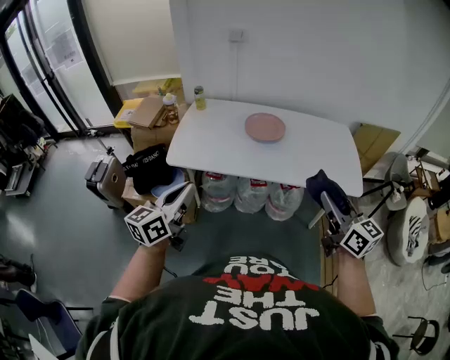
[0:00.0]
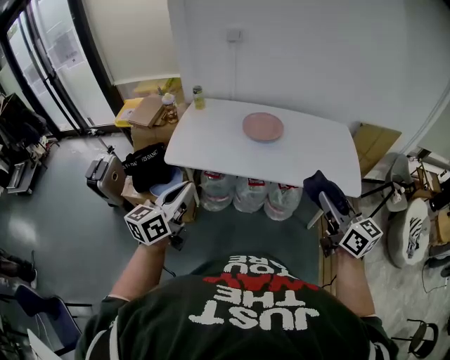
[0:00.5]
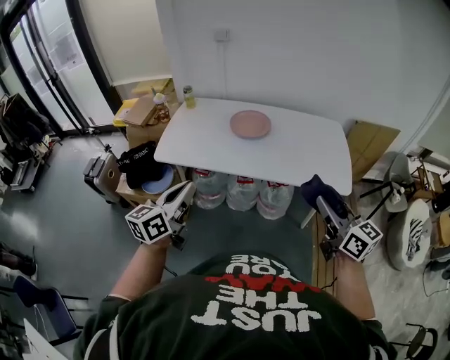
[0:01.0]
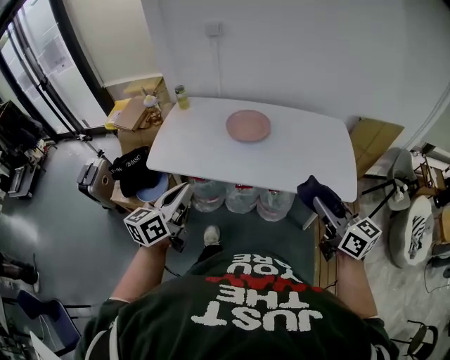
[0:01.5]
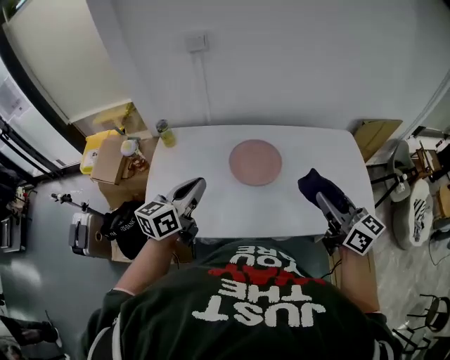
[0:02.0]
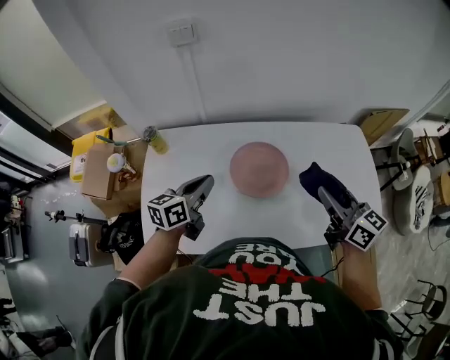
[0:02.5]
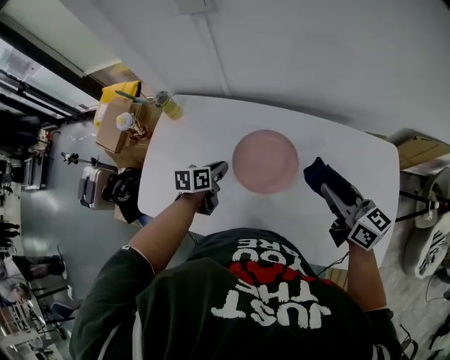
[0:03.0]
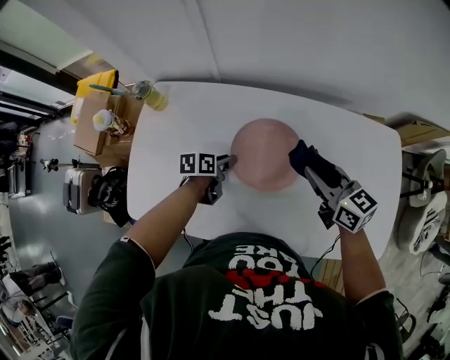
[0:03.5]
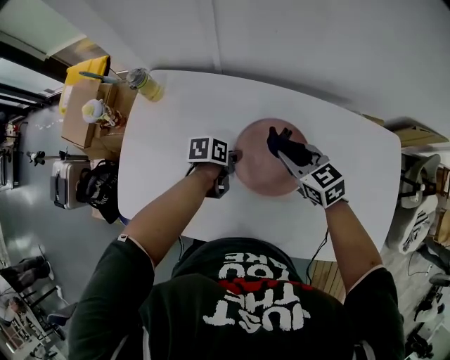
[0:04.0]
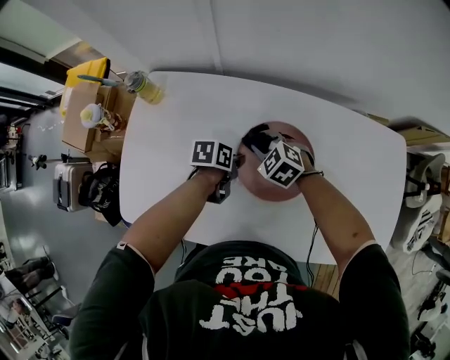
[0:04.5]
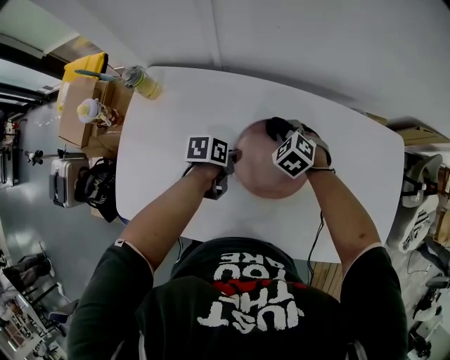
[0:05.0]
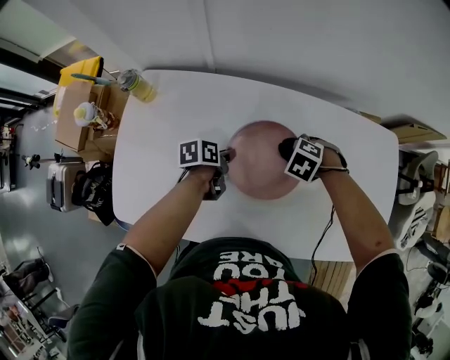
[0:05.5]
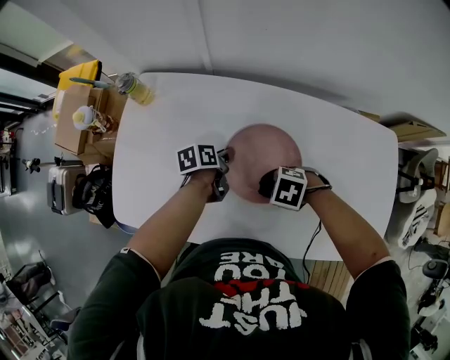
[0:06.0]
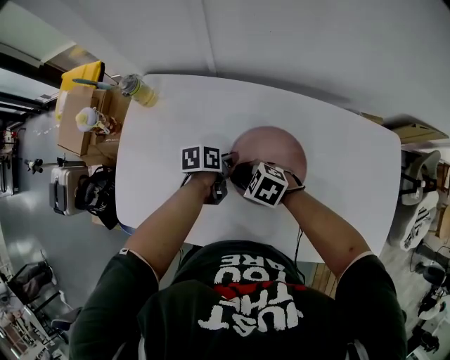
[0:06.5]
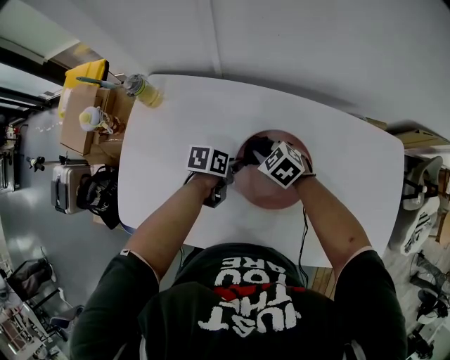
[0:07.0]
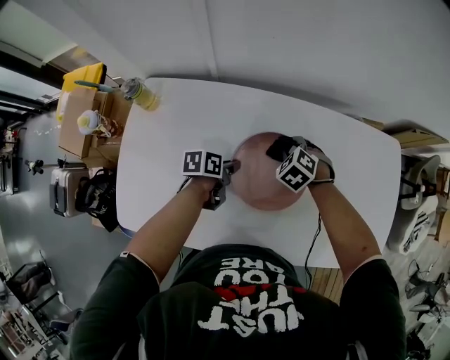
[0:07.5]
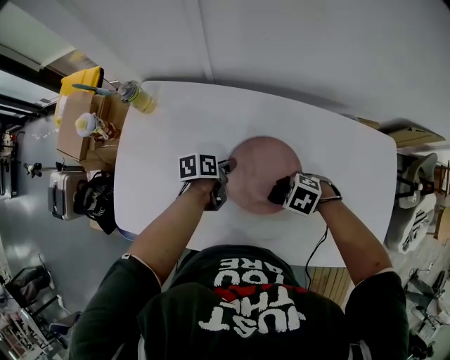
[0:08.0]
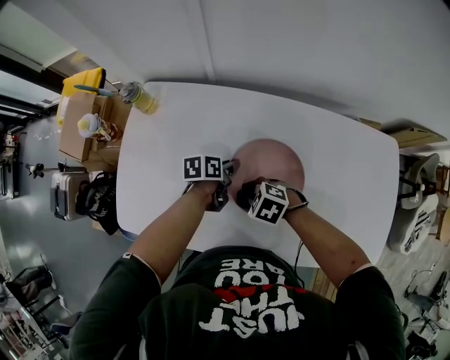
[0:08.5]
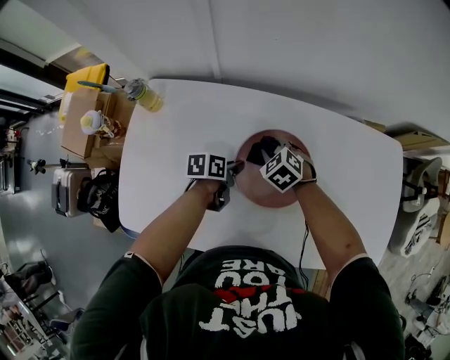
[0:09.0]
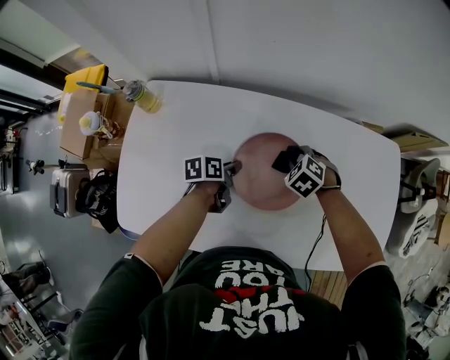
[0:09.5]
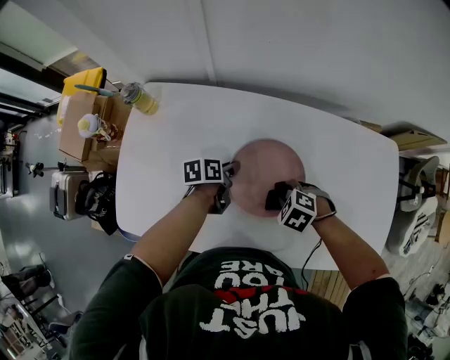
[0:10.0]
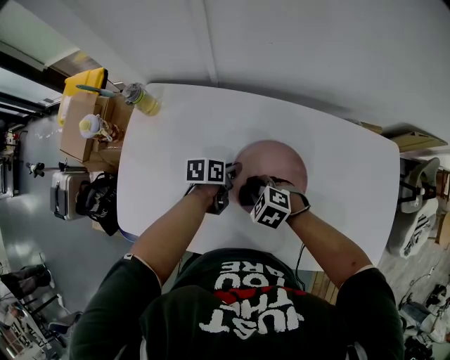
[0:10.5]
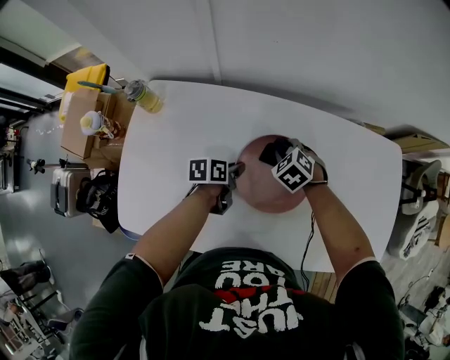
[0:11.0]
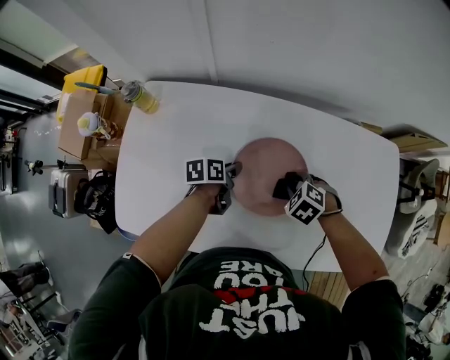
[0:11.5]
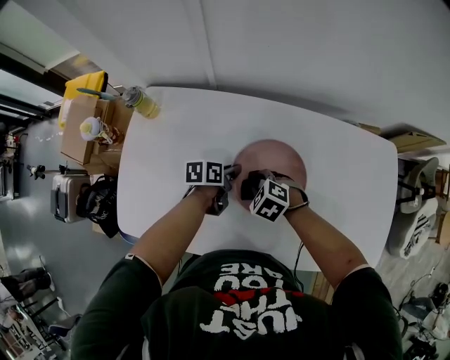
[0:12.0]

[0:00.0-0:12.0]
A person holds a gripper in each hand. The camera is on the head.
0:00.0 to 0:02.0: Both grippers travel together forward, some 35 cm.
0:02.0 to 0:04.0: The right gripper travels forward and downward by about 40 cm, and angles its fingers downward, by about 30 degrees; the left gripper moves downward and forward, approximately 40 cm, and points its fingers approximately 40 degrees further downward.
0:04.0 to 0:06.0: The right gripper moves approximately 15 cm, and points its fingers roughly 40 degrees further downward.

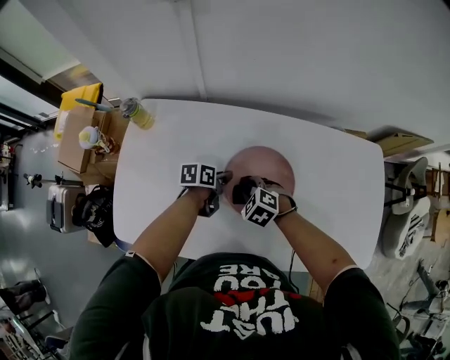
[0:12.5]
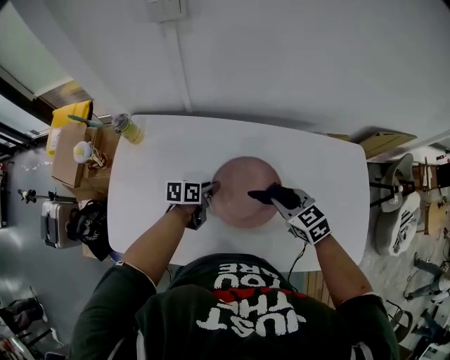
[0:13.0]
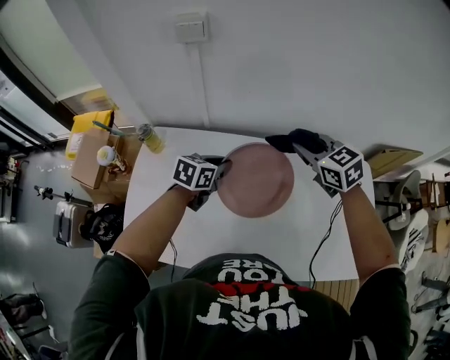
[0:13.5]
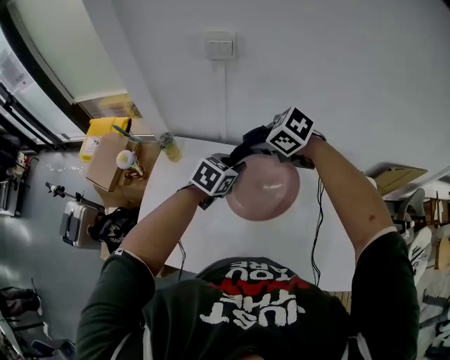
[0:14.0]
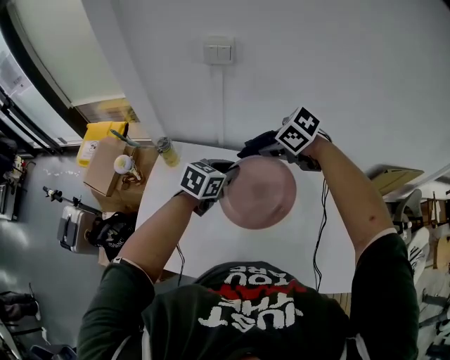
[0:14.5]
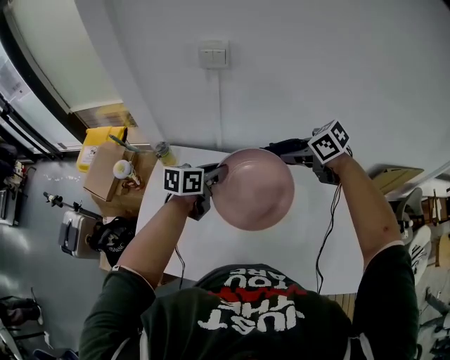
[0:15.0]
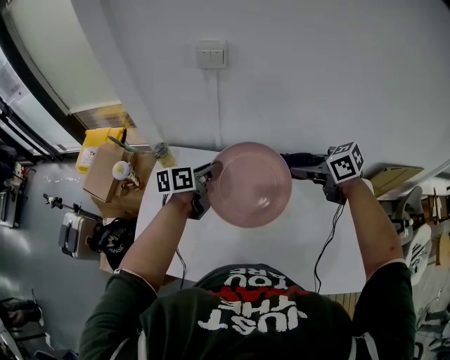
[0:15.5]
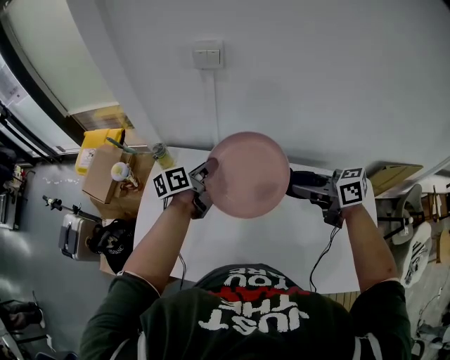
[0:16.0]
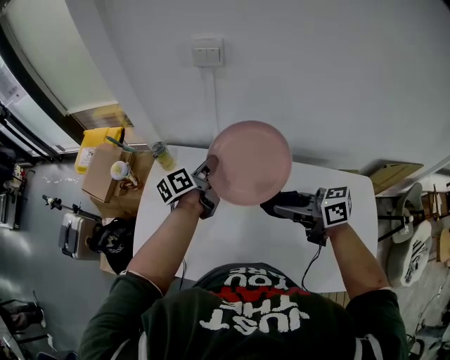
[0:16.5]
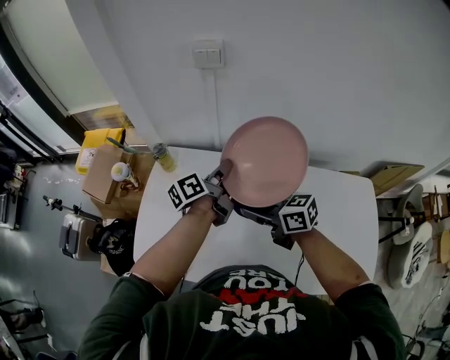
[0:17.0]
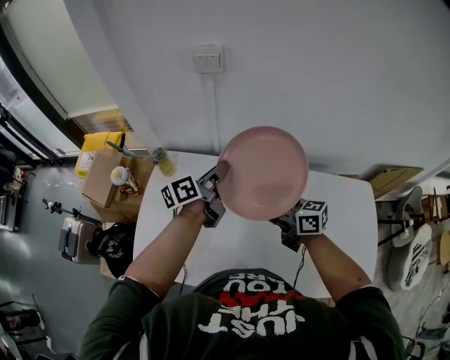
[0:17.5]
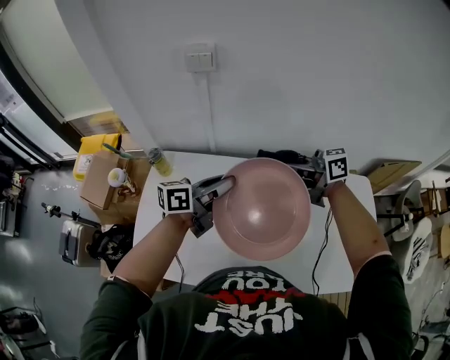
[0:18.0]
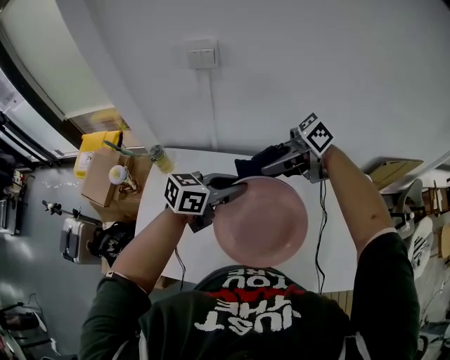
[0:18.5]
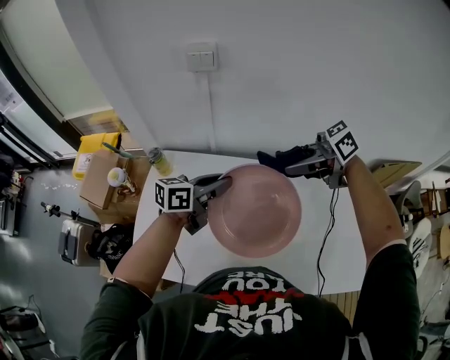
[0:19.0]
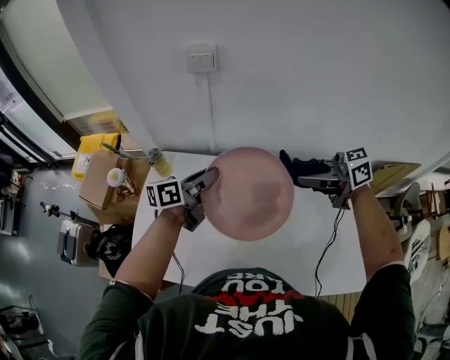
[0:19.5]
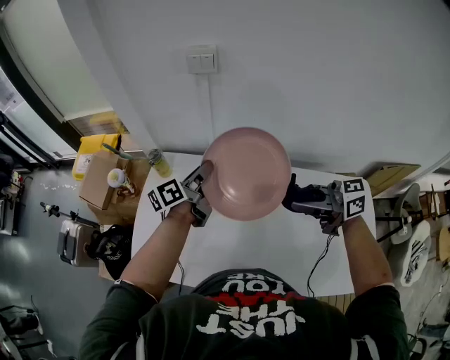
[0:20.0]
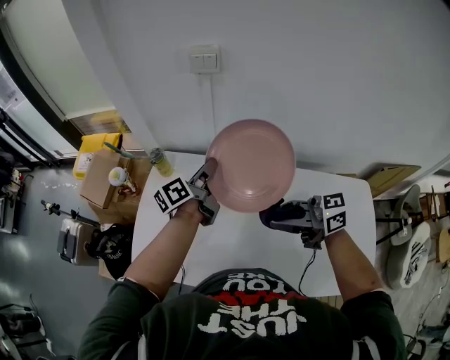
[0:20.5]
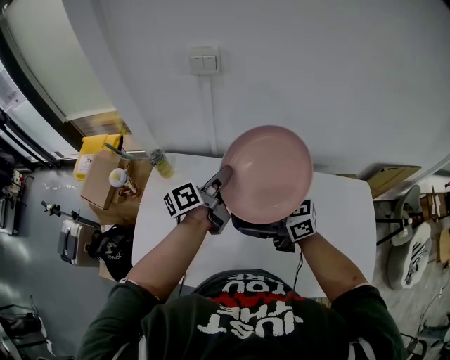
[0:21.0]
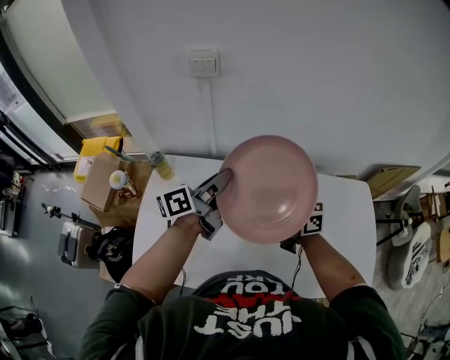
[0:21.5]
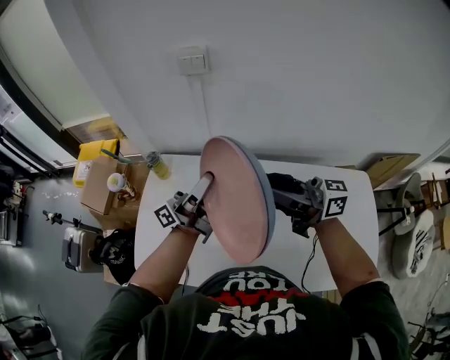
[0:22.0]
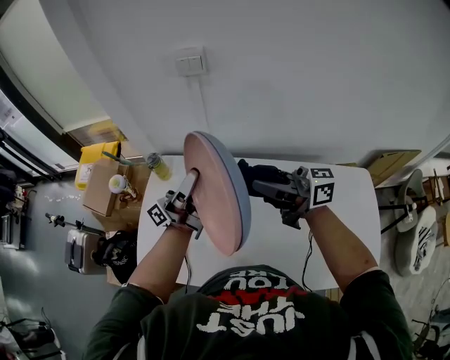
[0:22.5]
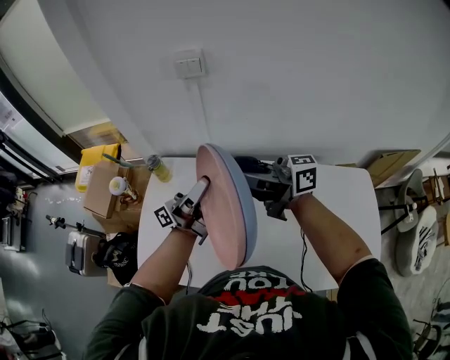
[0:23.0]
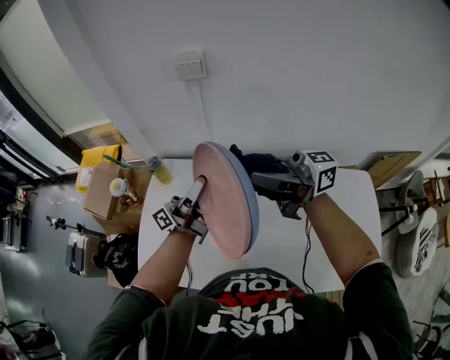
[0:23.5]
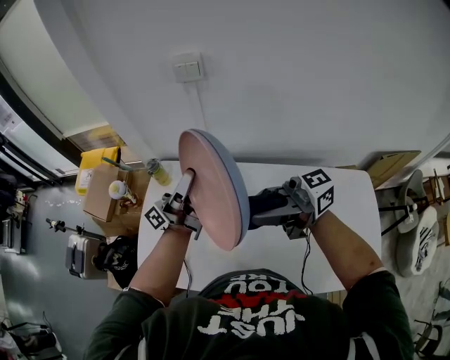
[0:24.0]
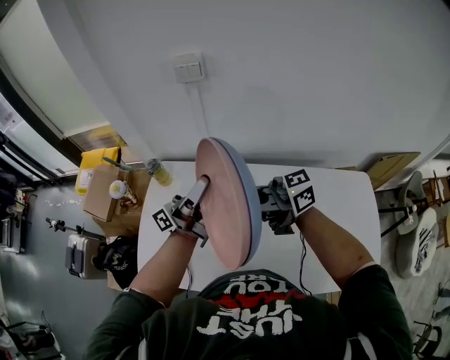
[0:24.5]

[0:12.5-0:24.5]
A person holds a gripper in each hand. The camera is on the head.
0:12.5 to 0:14.5: Both grippers travel together upward, about 25 cm. The left gripper rolls clockwise, seen from behind, by roughly 50 degrees, while the right gripper swivels approximately 30 degrees.
0:14.5 to 0:16.5: The right gripper changes place by some 15 cm, and points its fingers some 40 degrees further upward; the left gripper moves roughly 10 cm, and rotates around the line of its fingers by roughly 50 degrees, counterclockwise from behind.
0:16.5 to 0:18.5: The right gripper moves about 10 cm, and swivels approximately 30 degrees. Meanwhile the left gripper moves roughly 15 cm, and rotates roughly 60 degrees.
0:18.5 to 0:20.5: The left gripper ends up roughly 15 cm from where it was, and swivels some 60 degrees. Meanwhile the right gripper moves roughly 10 cm, and swivels approximately 30 degrees.
0:20.5 to 0:22.5: The right gripper travels forward and upward by about 10 cm, and turns by approximately 20 degrees; the left gripper heads upward and backward, covering approximately 10 cm, and angles its fingers upward, by roughly 40 degrees.
0:22.5 to 0:24.5: The right gripper travels upward and back again, some 5 cm each way, and turns by approximately 20 degrees.

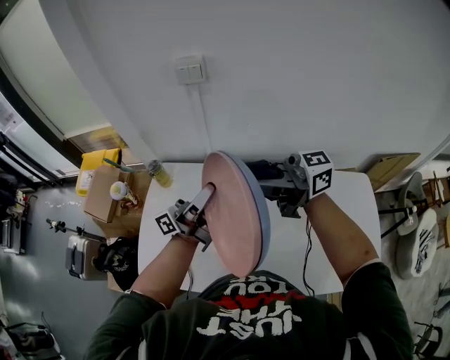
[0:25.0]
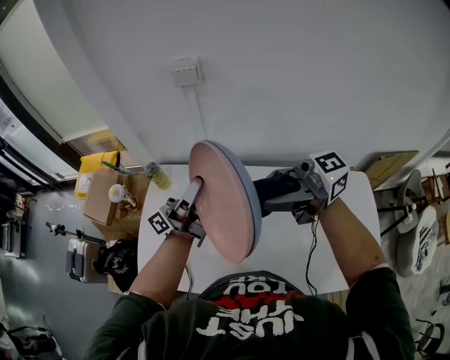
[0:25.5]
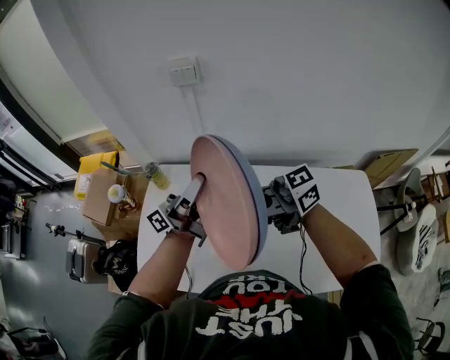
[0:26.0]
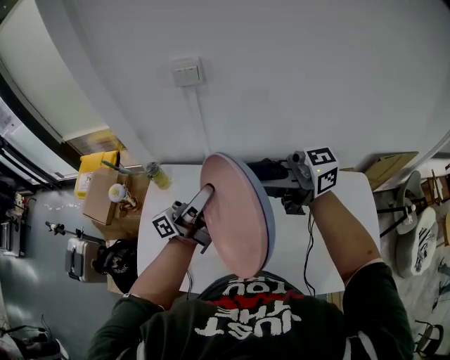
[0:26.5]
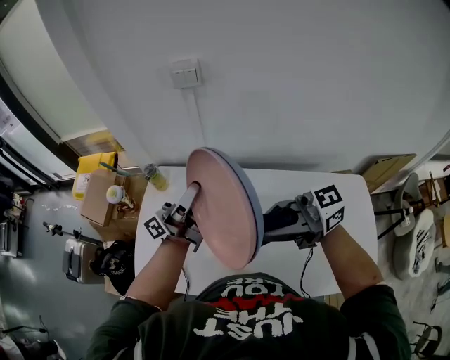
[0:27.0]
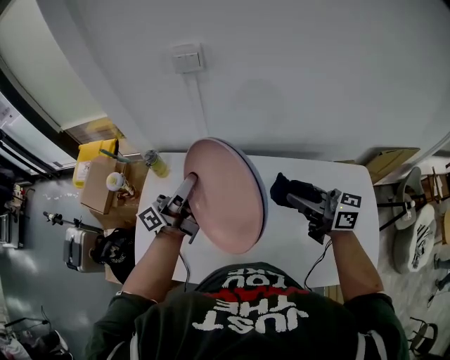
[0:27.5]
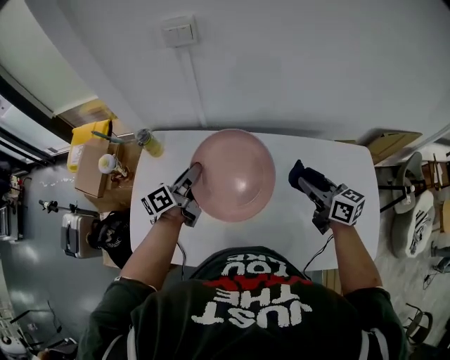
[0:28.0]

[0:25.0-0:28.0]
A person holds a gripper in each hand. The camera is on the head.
0:25.0 to 0:26.5: The right gripper reaches some 5 cm downward, then returns.
0:26.5 to 0:28.0: Both grippers travel together downward, about 20 cm. The right gripper rotates about 60 degrees, while the left gripper tilts its fingers some 40 degrees downward.
